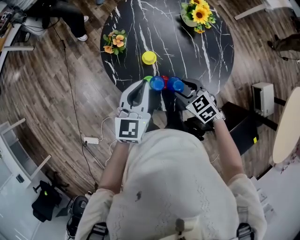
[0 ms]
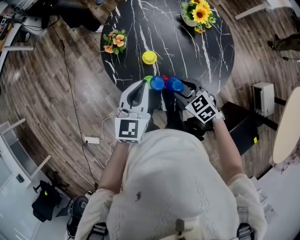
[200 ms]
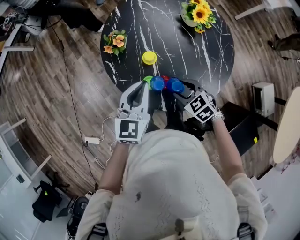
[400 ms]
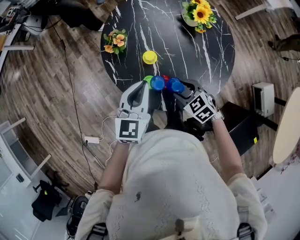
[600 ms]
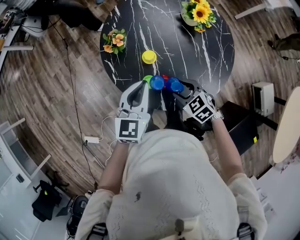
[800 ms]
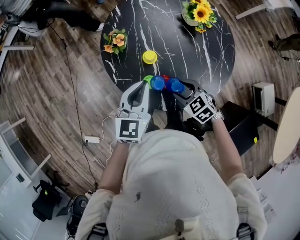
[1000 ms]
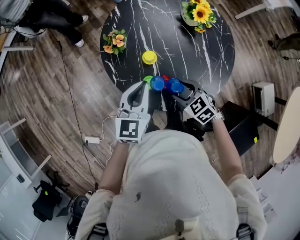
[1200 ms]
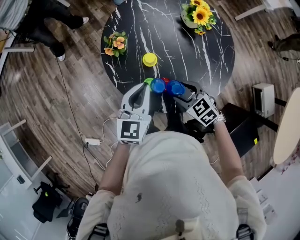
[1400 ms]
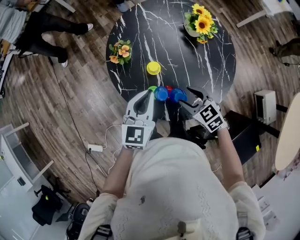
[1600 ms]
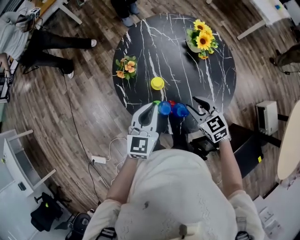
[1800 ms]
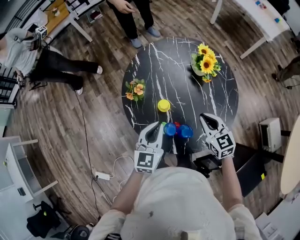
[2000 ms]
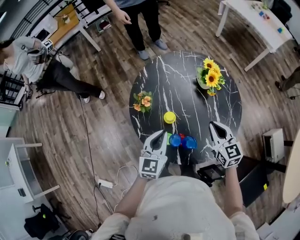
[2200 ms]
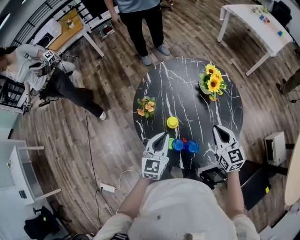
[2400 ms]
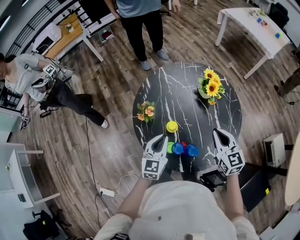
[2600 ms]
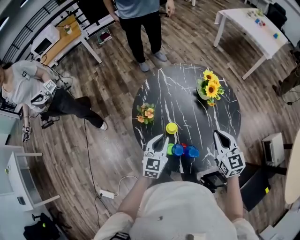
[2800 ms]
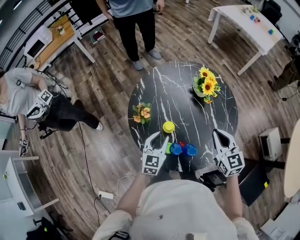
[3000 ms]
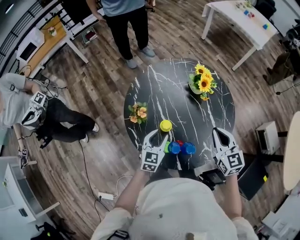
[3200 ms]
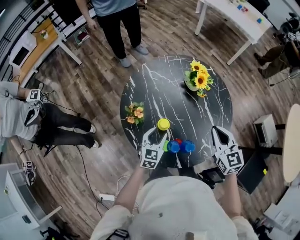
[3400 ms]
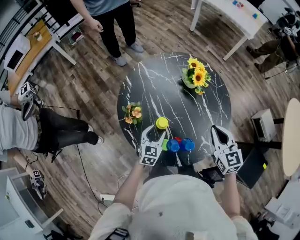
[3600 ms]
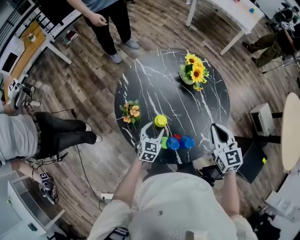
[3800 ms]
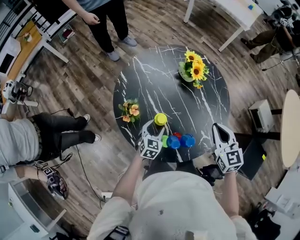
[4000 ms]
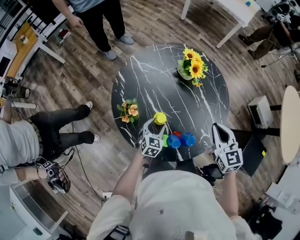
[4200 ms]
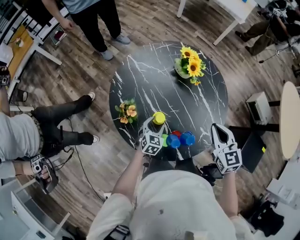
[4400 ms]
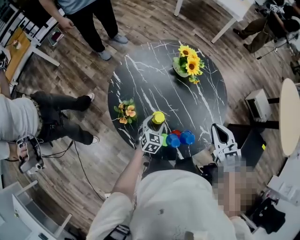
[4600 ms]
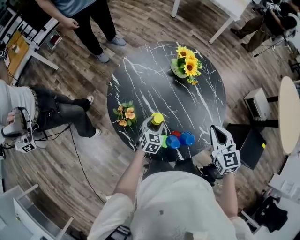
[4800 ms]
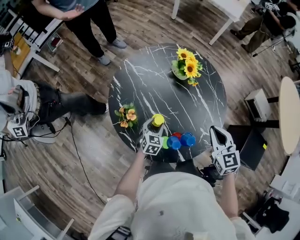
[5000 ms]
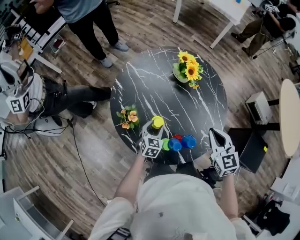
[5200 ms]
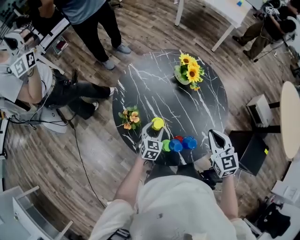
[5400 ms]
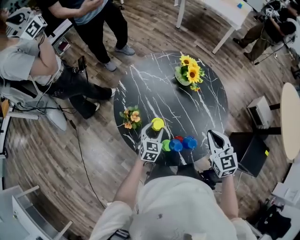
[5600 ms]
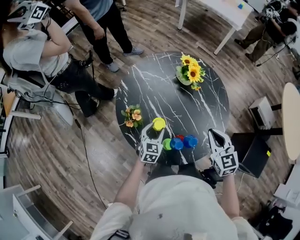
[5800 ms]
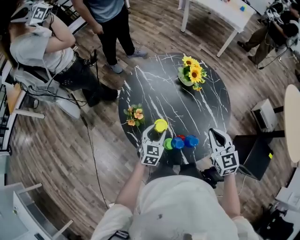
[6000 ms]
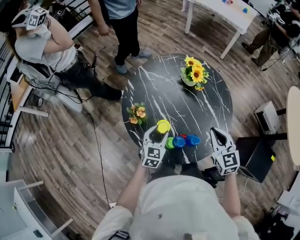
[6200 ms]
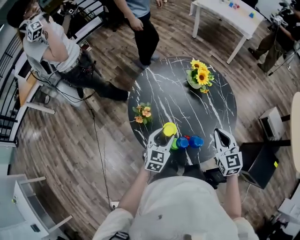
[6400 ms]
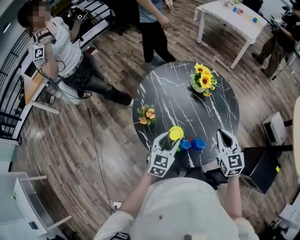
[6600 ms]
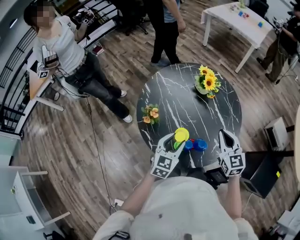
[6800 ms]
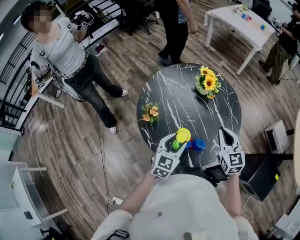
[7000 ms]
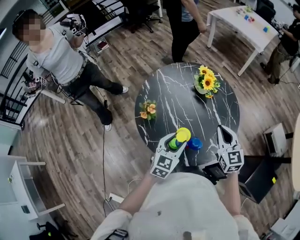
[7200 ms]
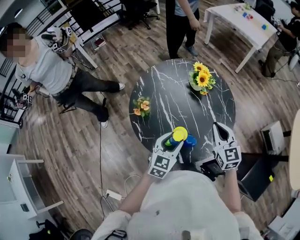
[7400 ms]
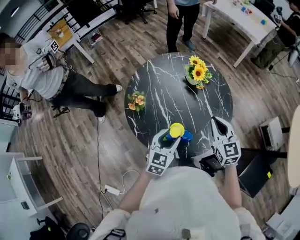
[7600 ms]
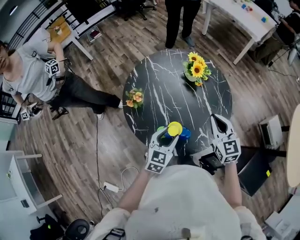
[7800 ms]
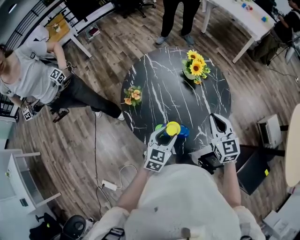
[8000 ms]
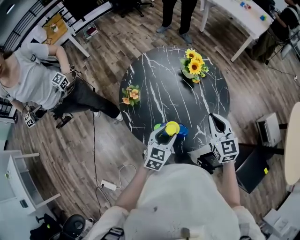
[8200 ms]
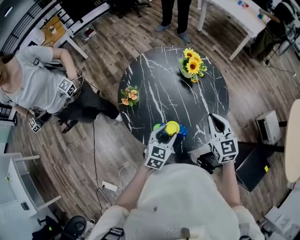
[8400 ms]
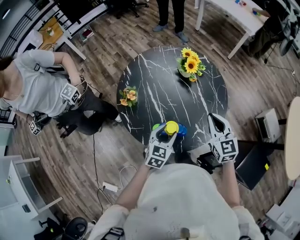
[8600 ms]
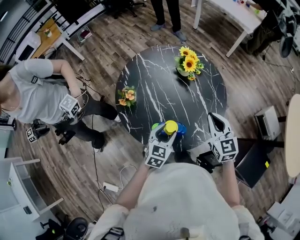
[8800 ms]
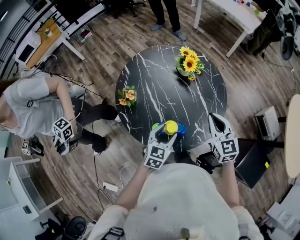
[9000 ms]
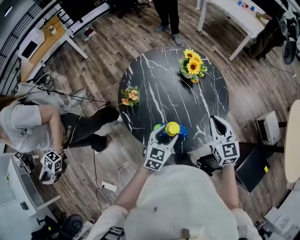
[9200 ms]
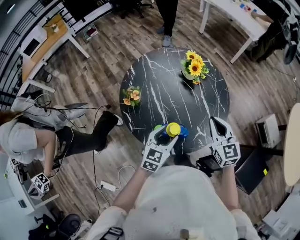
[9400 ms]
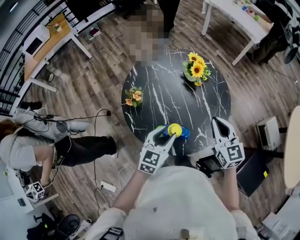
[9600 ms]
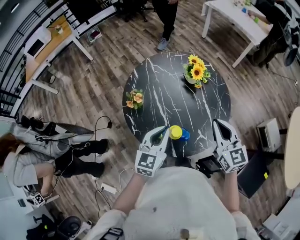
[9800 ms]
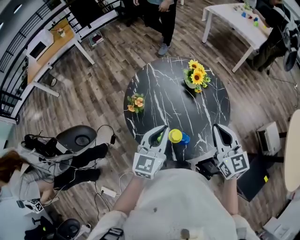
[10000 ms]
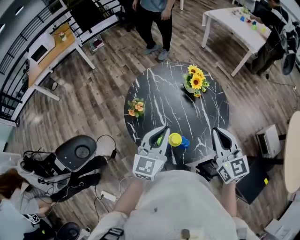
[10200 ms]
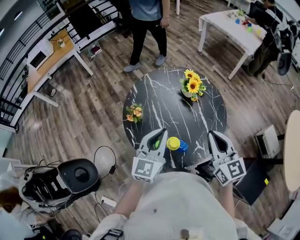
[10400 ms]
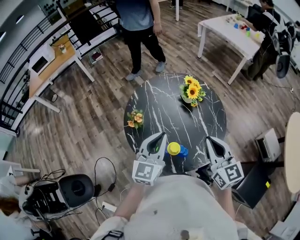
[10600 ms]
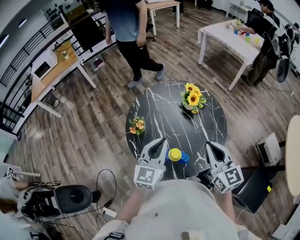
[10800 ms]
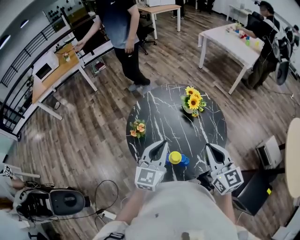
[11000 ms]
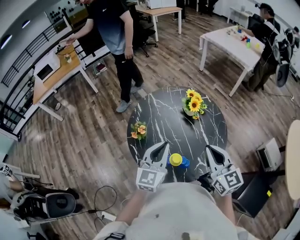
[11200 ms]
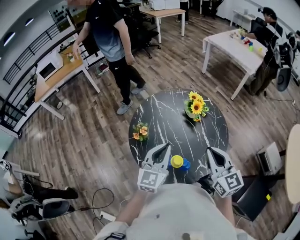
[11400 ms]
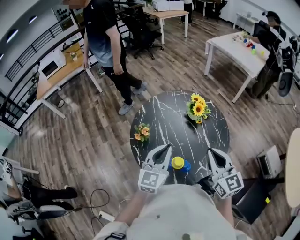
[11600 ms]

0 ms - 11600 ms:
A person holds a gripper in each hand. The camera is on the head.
0 ms - 1400 ms: The grippers move only a little.
1400 ms - 2800 ms: The right gripper is displaced upward, forward and to the right by some 20 cm, changes its angle by some 40 degrees, and closes. Meanwhile the left gripper heads forward, covering about 5 cm.
2800 ms - 4400 ms: The right gripper turns by roughly 20 degrees. Meanwhile the left gripper travels downward by roughly 20 cm, turns by about 30 degrees, and opens.
4400 ms - 5800 ms: The left gripper is displaced upward by roughly 5 cm.
5800 ms - 7200 ms: The left gripper is displaced upward, backward and to the right by some 20 cm. Meanwhile the right gripper heads upward, covering about 5 cm.
7200 ms - 8800 ms: The right gripper is displaced to the right by some 5 cm. The left gripper travels downward and to the right by roughly 10 cm.
8800 ms - 10200 ms: The left gripper moves upward, roughly 20 cm, changes its angle by approximately 30 degrees, and closes, while the right gripper travels upward by approximately 15 cm.
10200 ms - 11600 ms: There are only small adjustments of the grippers.

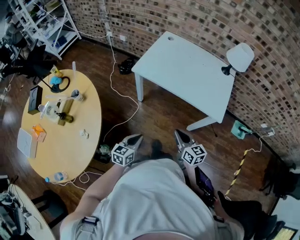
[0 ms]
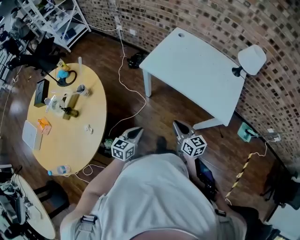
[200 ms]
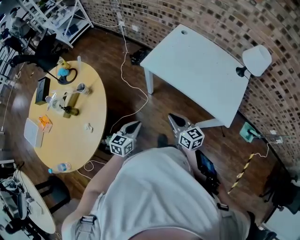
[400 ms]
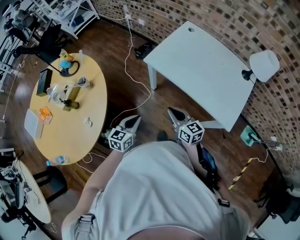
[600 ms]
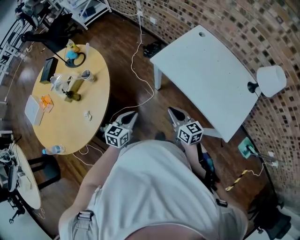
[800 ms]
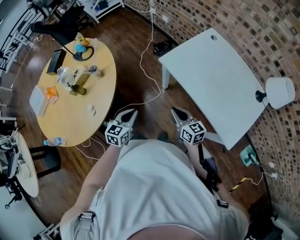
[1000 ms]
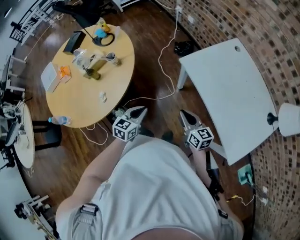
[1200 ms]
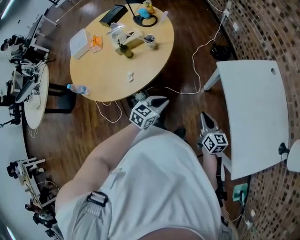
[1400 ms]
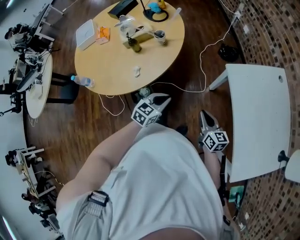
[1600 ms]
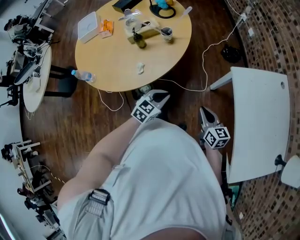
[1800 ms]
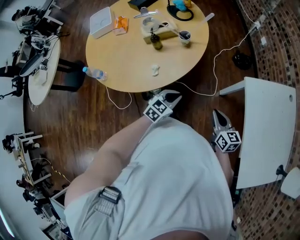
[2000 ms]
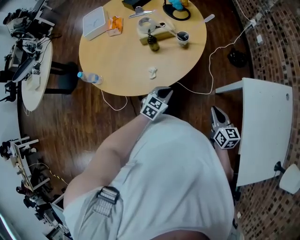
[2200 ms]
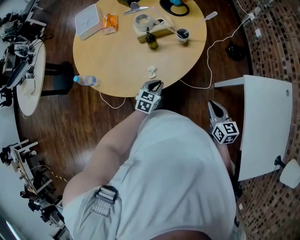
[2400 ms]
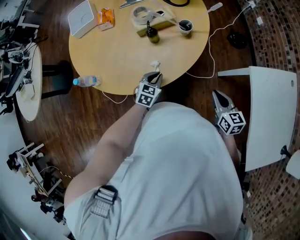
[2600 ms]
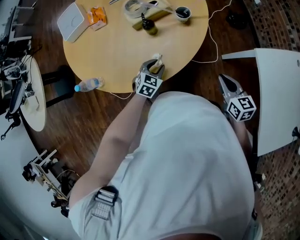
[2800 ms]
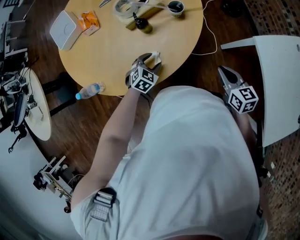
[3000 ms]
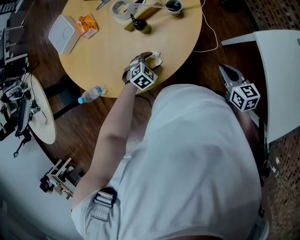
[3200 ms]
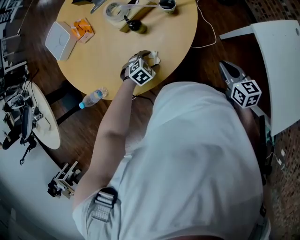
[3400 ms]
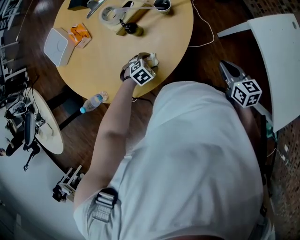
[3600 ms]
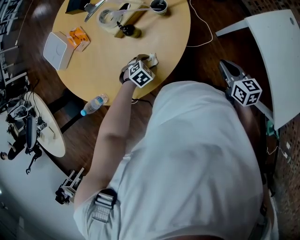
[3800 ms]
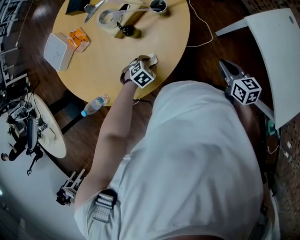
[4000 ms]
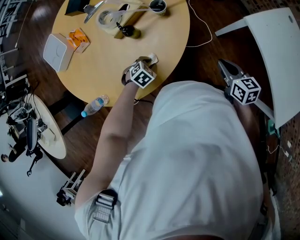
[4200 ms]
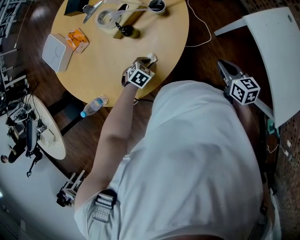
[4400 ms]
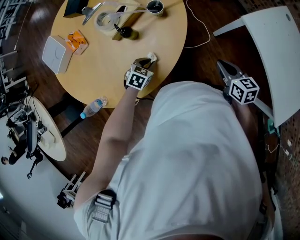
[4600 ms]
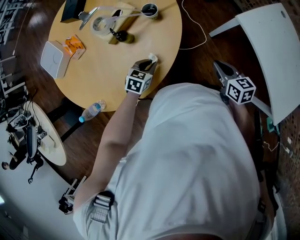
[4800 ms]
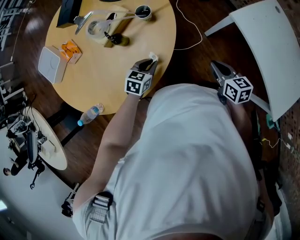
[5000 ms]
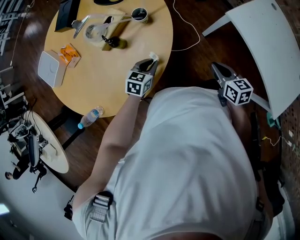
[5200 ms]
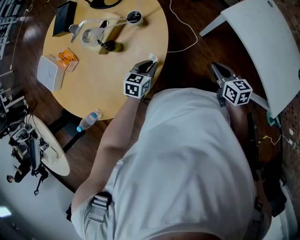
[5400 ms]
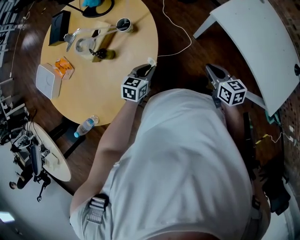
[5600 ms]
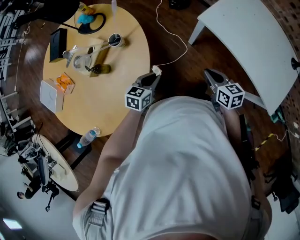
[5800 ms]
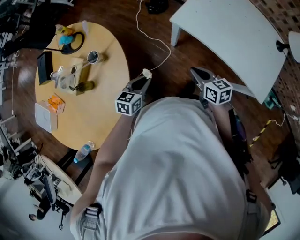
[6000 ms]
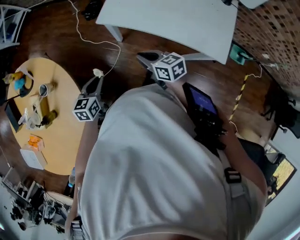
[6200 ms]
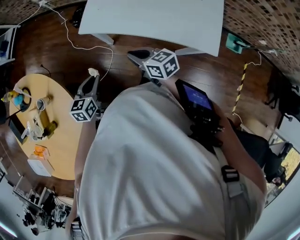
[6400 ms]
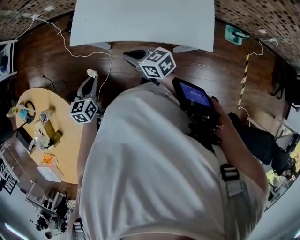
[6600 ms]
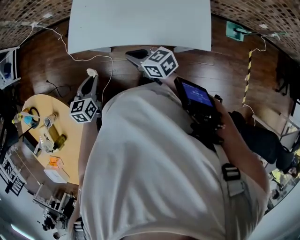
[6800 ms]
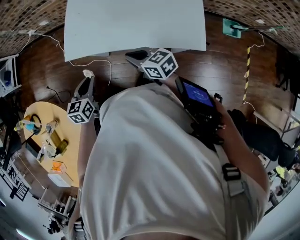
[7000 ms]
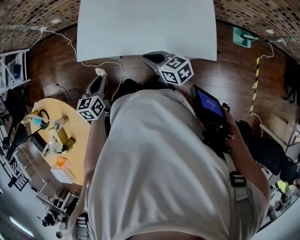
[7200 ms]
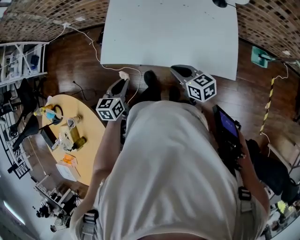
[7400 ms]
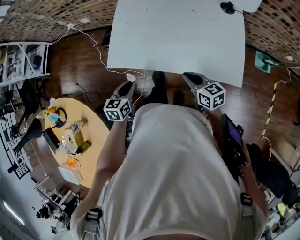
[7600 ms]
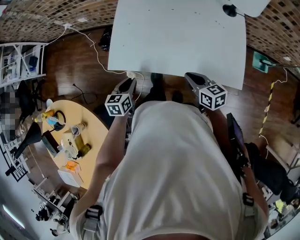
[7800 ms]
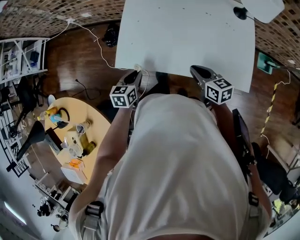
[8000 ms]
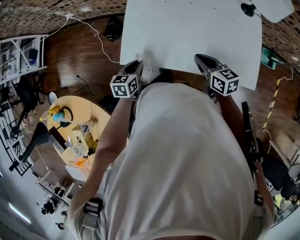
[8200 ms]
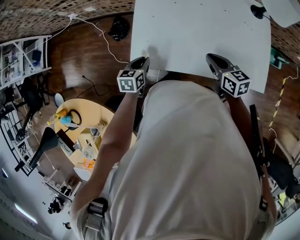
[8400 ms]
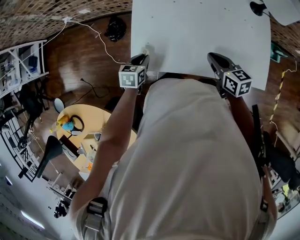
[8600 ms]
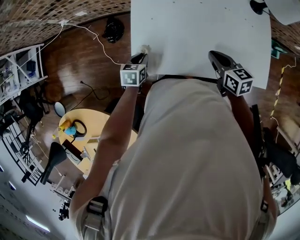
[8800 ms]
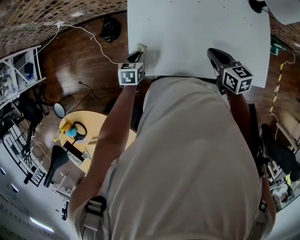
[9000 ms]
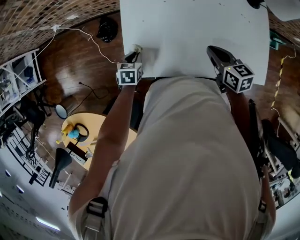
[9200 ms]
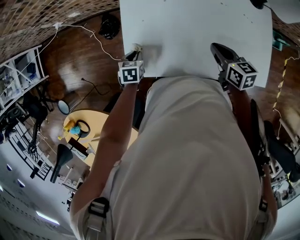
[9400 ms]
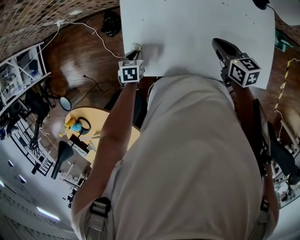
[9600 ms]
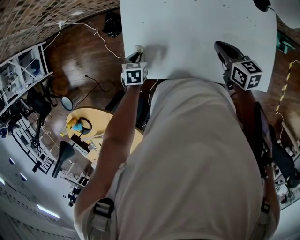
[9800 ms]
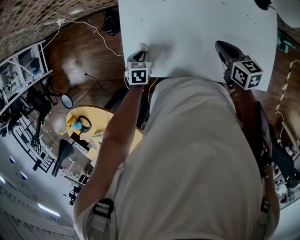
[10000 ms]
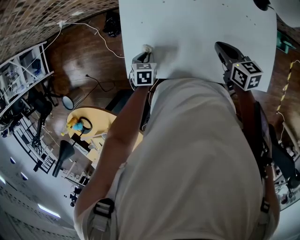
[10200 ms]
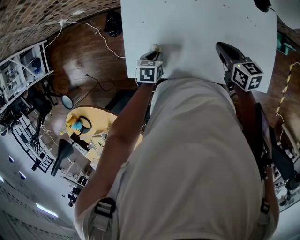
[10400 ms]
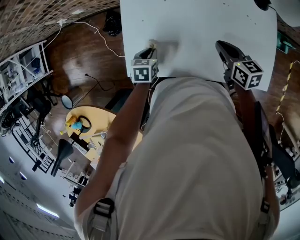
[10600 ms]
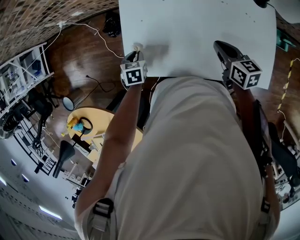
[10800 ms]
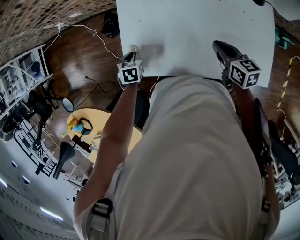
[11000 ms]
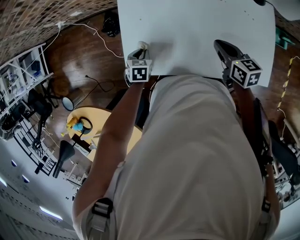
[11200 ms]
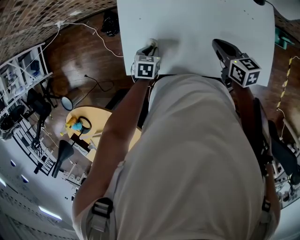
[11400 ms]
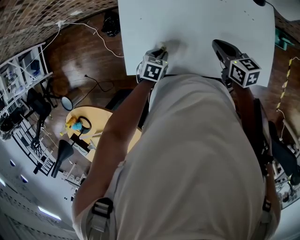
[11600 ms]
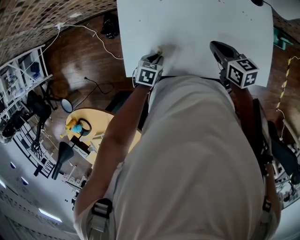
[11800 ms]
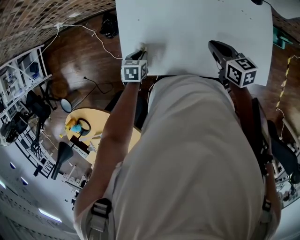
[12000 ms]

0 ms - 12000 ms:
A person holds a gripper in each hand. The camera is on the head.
0 ms - 1600 ms: The left gripper changes place by roughly 15 cm, and changes its angle by some 40 degrees, while the right gripper ends up roughly 20 cm from where it was, and rotates roughly 40 degrees.
1600 ms - 3000 ms: The left gripper shifts about 35 cm to the left, forward and downward, turns by some 30 degrees, and opens. The right gripper is displaced to the left and forward by approximately 20 cm.
3000 ms - 4400 ms: The left gripper swivels approximately 20 degrees, and closes its fingers.
4400 ms - 6000 ms: The left gripper heads to the right and upward, covering some 30 cm, and angles its fingers upward, by some 30 degrees. Meanwhile the right gripper moves to the right, about 20 cm.
6000 ms - 7600 ms: The left gripper heads to the right and forward, covering approximately 30 cm. Meanwhile the right gripper shifts roughly 25 cm to the right, and changes its angle by roughly 20 degrees.
7600 ms - 9000 ms: The right gripper goes approximately 20 cm forward; the left gripper travels forward, to the left and downward by some 30 cm.
9000 ms - 10400 ms: Both grippers travel together to the right, some 10 cm.
10400 ms - 12000 ms: The left gripper swings left and right, approximately 15 cm each way, with 2 reversals.
